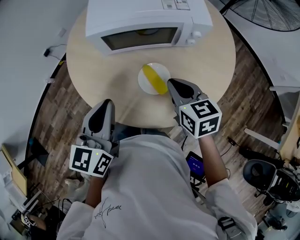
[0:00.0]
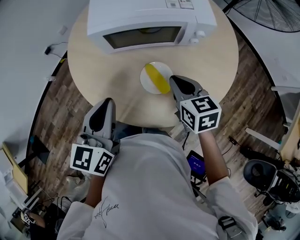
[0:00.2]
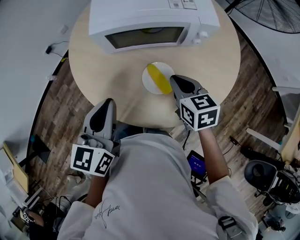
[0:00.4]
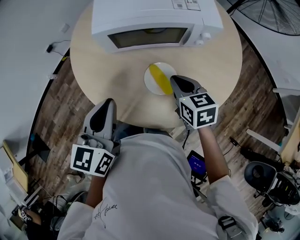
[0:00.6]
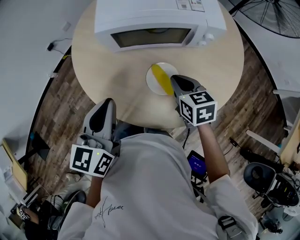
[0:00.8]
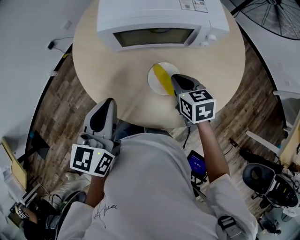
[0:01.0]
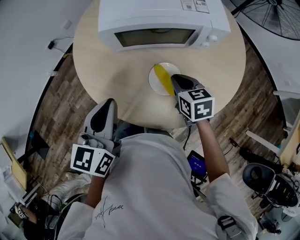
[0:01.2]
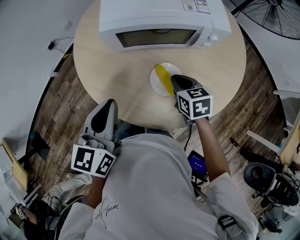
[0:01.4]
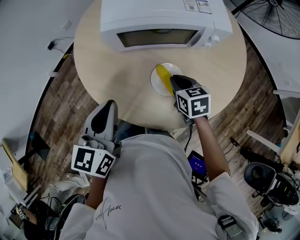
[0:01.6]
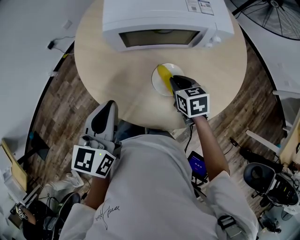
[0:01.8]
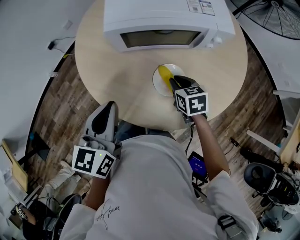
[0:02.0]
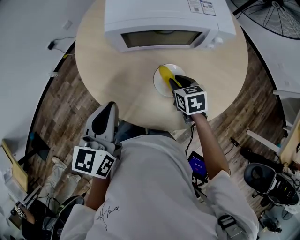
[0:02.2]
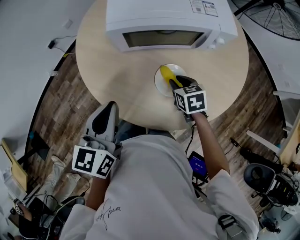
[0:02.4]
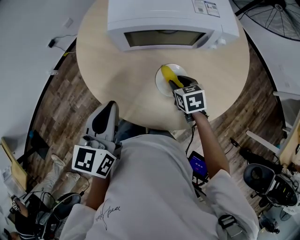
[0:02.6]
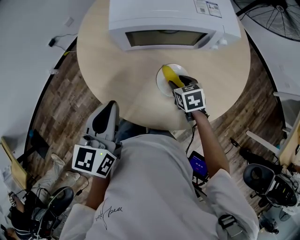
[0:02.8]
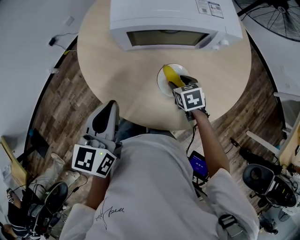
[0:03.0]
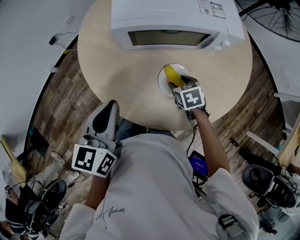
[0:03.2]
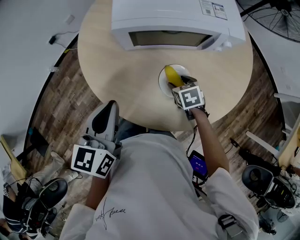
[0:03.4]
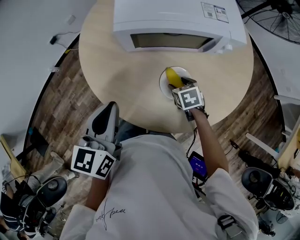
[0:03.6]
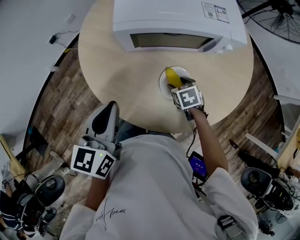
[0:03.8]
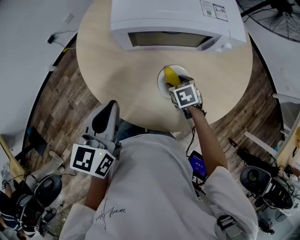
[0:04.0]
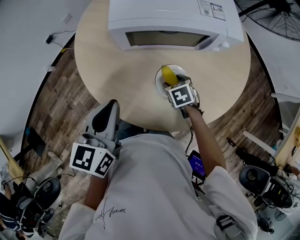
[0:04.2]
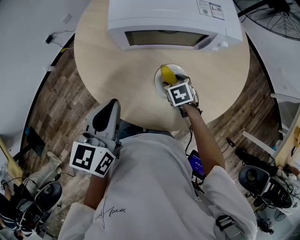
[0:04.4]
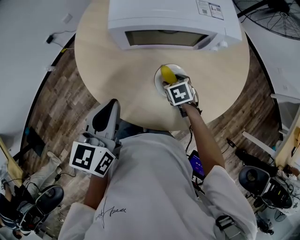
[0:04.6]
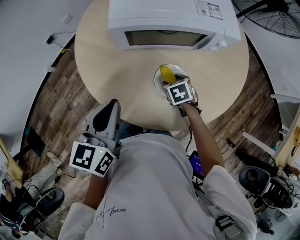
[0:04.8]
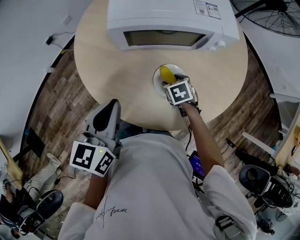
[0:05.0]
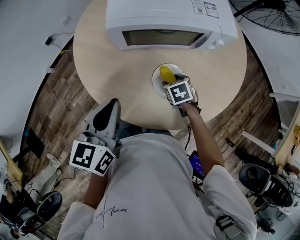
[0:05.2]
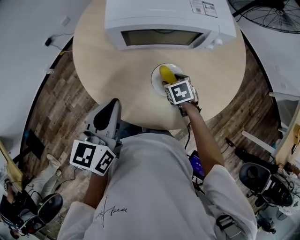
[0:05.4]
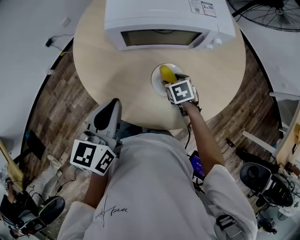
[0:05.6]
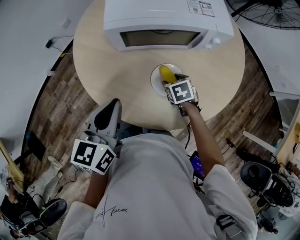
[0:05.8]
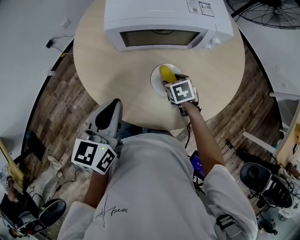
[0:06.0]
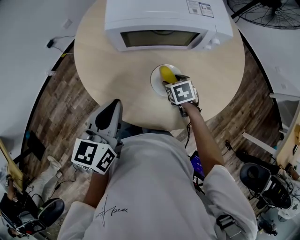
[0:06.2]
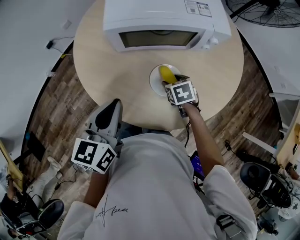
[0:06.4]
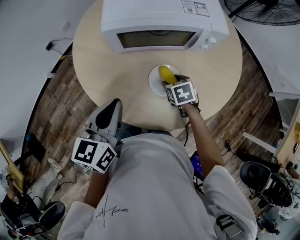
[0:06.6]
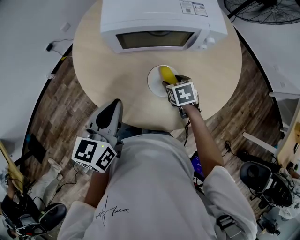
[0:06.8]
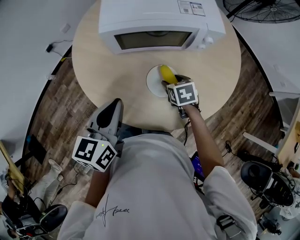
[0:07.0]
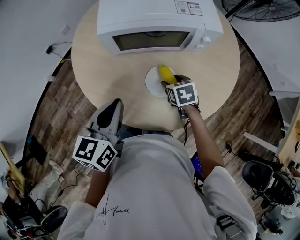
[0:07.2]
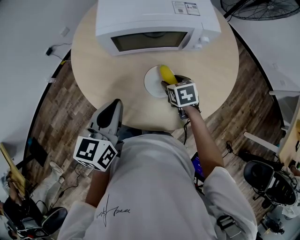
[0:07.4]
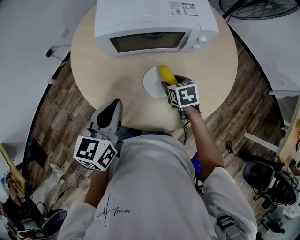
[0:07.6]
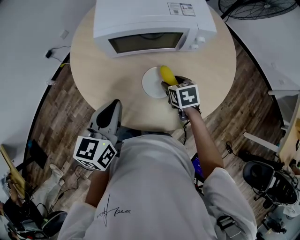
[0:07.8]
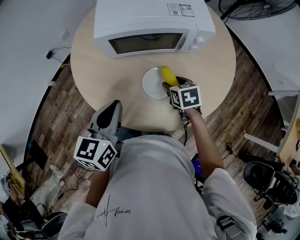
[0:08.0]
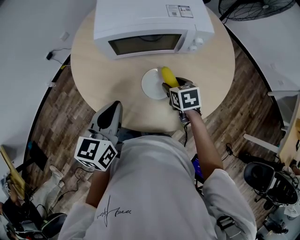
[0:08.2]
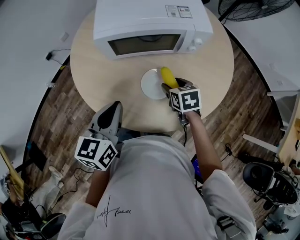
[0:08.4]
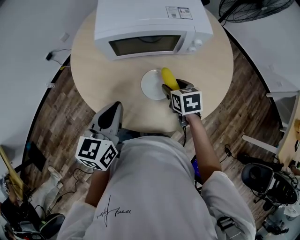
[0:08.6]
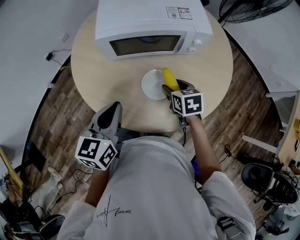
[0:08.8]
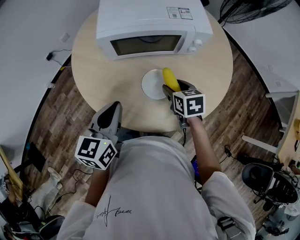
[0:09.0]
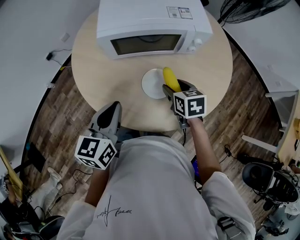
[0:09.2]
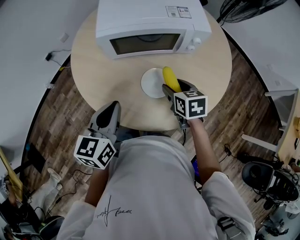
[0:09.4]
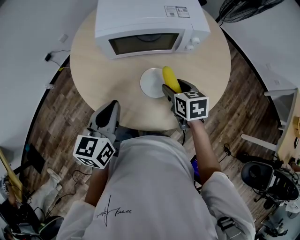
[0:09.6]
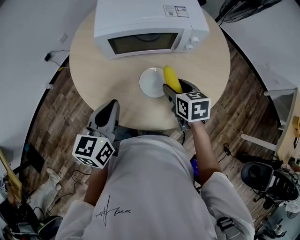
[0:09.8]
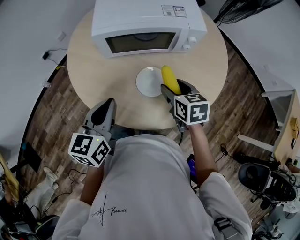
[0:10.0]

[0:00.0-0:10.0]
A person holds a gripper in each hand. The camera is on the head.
0:00.0 to 0:01.4: The right gripper shifts approximately 10 cm downward.
0:01.4 to 0:02.8: The right gripper is displaced downward by approximately 5 cm, and opens.
0:02.8 to 0:07.2: The grippers move only a little.
0:07.2 to 0:08.6: The right gripper shifts approximately 5 cm upward.
0:08.6 to 0:10.0: The right gripper moves upward, approximately 5 cm.

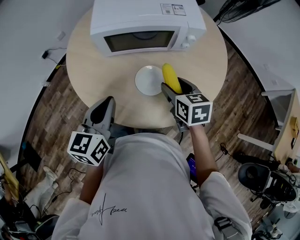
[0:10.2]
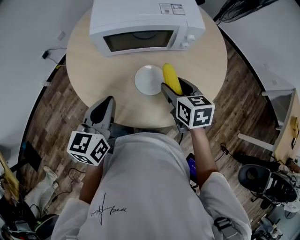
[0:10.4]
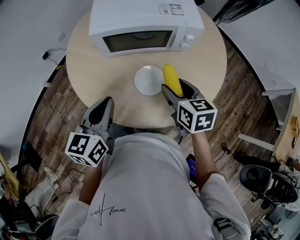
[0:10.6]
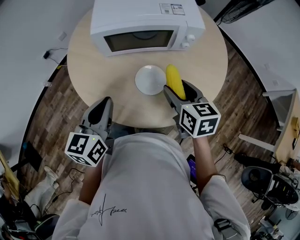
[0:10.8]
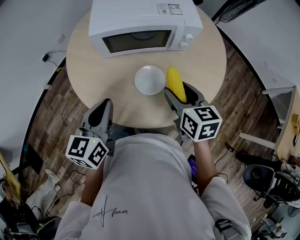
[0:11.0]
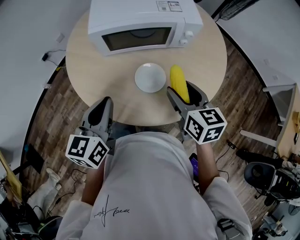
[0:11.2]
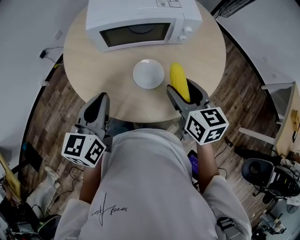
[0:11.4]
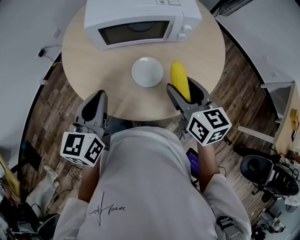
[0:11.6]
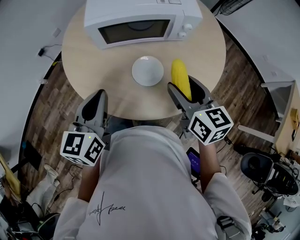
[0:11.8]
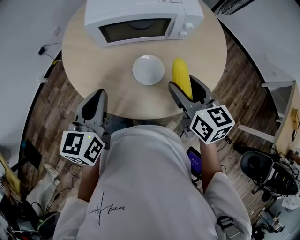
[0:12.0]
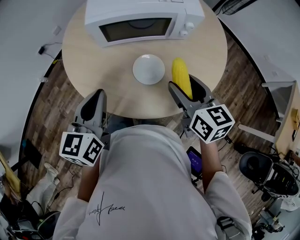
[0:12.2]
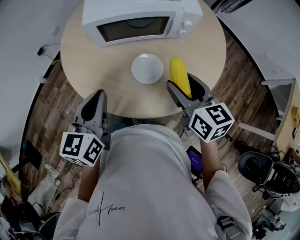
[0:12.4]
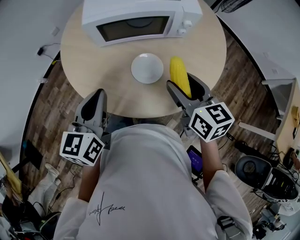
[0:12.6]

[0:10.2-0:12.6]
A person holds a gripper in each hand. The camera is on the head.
0:10.2 to 0:11.4: The right gripper goes roughly 5 cm upward.
0:11.4 to 0:12.6: Neither gripper changes place.

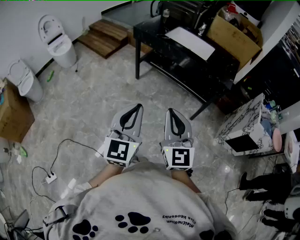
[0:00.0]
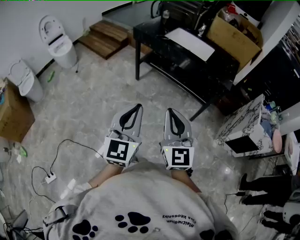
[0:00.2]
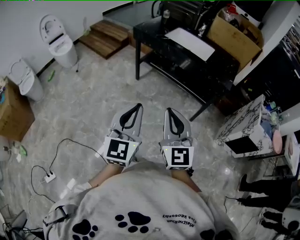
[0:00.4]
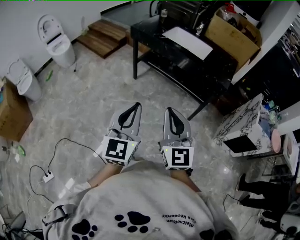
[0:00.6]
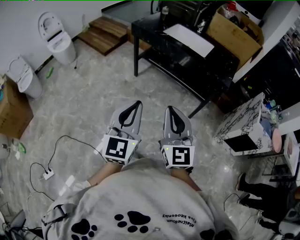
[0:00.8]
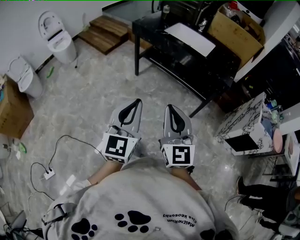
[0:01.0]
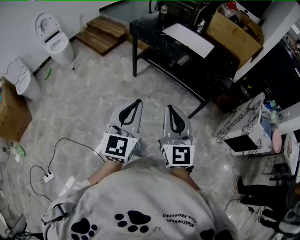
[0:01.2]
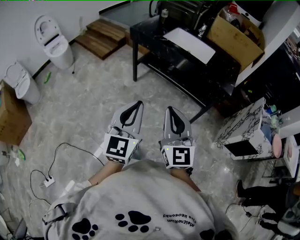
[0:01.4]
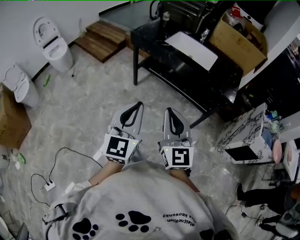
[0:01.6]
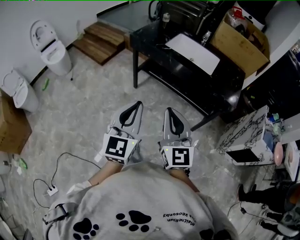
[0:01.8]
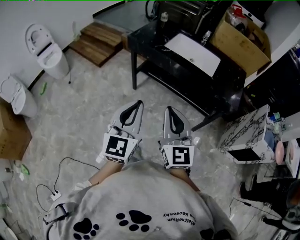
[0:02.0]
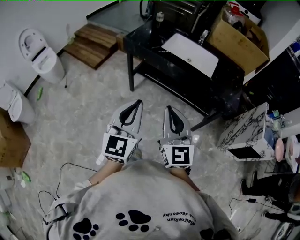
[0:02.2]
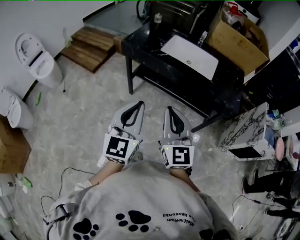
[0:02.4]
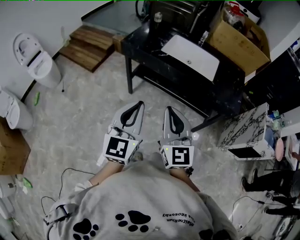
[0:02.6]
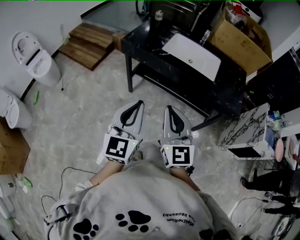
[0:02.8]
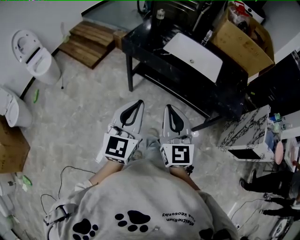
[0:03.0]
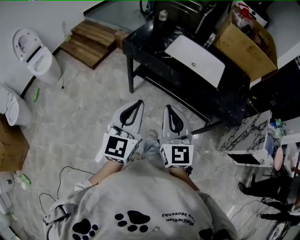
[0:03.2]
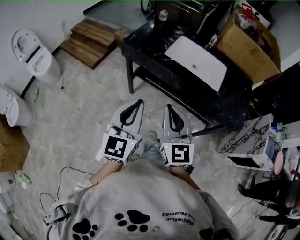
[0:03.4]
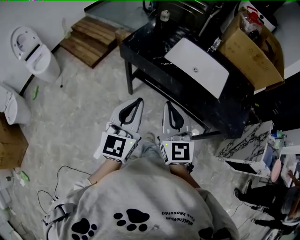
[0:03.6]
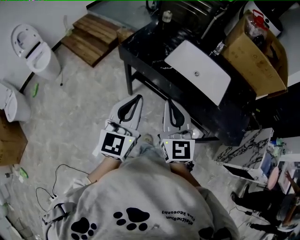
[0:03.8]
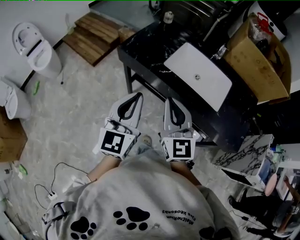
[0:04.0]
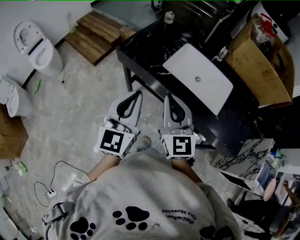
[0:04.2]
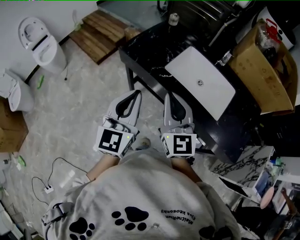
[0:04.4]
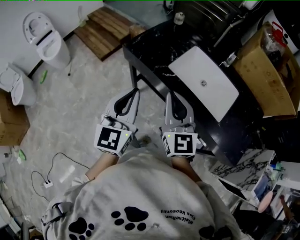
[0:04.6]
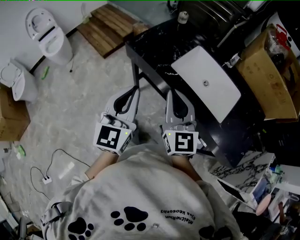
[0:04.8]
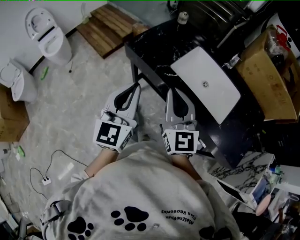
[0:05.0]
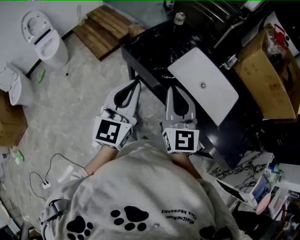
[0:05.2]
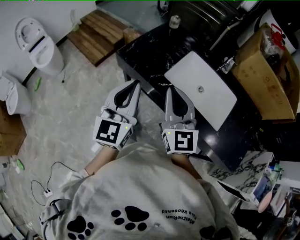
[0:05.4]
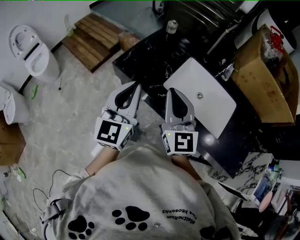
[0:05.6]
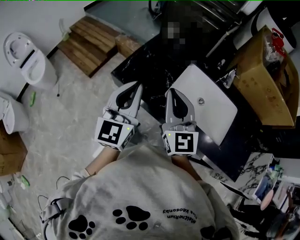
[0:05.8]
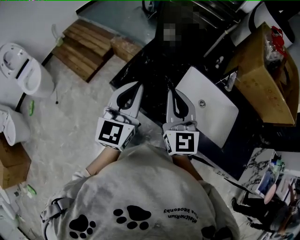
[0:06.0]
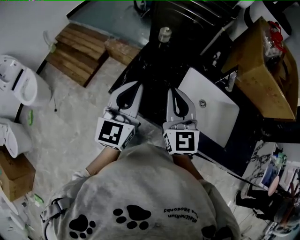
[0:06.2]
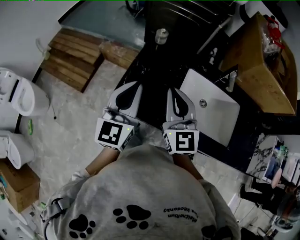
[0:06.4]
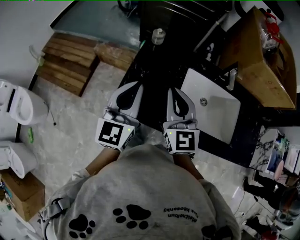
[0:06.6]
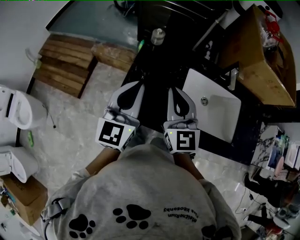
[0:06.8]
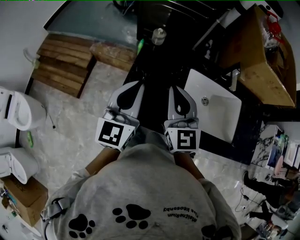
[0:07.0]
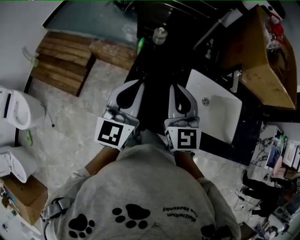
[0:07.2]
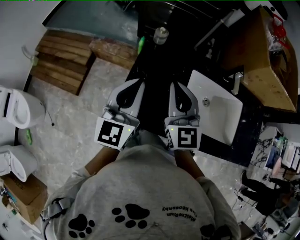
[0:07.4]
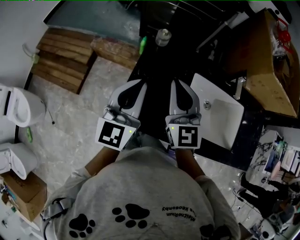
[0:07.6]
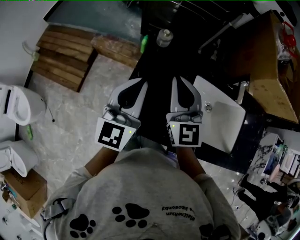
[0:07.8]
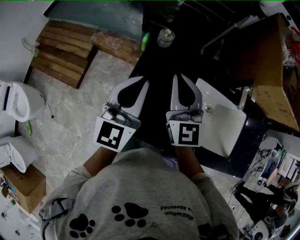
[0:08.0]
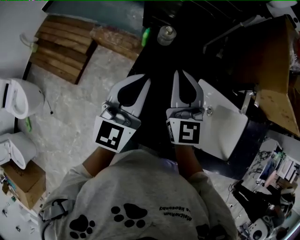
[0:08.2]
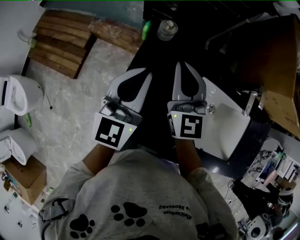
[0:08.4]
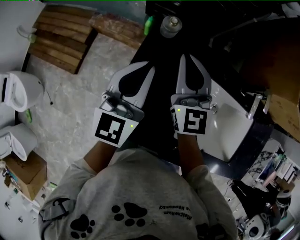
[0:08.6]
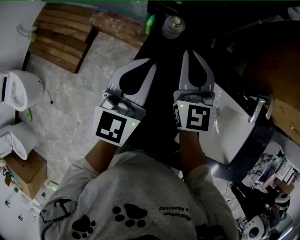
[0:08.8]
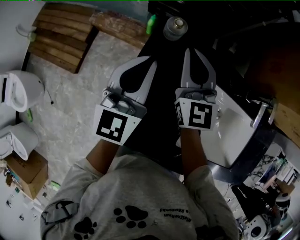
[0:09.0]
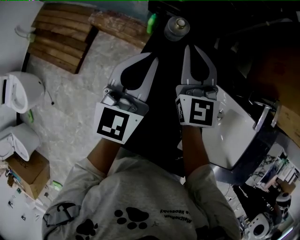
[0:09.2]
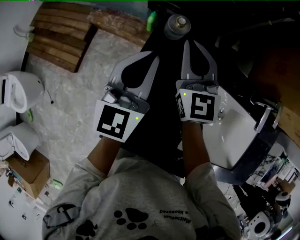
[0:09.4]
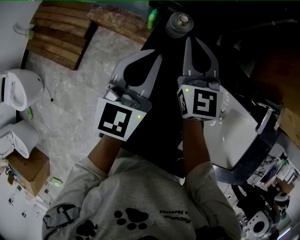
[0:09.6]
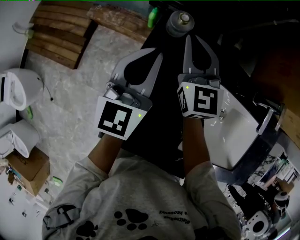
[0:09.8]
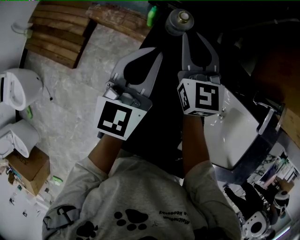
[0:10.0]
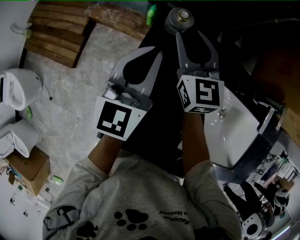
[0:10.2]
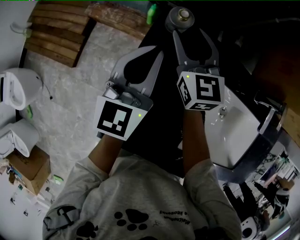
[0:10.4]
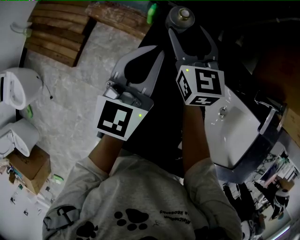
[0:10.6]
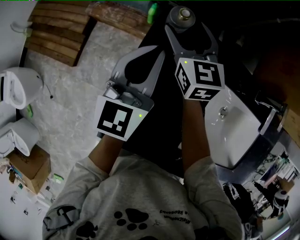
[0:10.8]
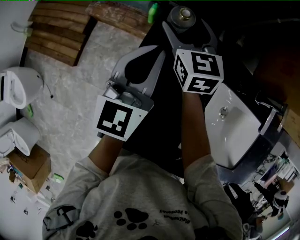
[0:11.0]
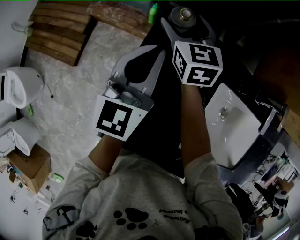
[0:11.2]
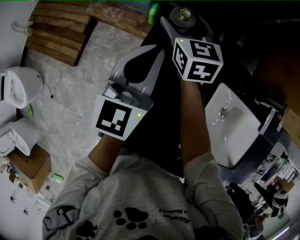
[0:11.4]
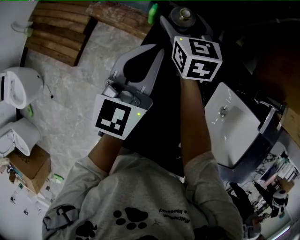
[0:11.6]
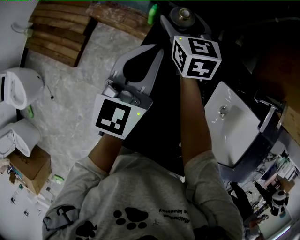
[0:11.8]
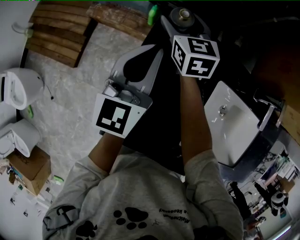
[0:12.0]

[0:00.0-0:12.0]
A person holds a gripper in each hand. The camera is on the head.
0:00.0 to 0:01.6: The grippers both shift forward by about 10 cm.
0:01.6 to 0:03.0: Both grippers travel together forward, some 20 cm.
0:03.0 to 0:04.4: Both grippers travel together forward, some 25 cm.
0:04.4 to 0:06.0: Both grippers travel together forward, some 25 cm.
0:06.0 to 0:07.6: The left gripper heads forward, covering about 15 cm. Meanwhile the right gripper shifts roughly 15 cm forward and to the left.
0:07.6 to 0:09.0: Both grippers move forward and downward, about 20 cm.
0:09.0 to 0:10.4: The right gripper goes some 10 cm downward and forward, and opens, while the left gripper moves approximately 5 cm.
0:10.4 to 0:12.0: The right gripper moves forward, some 5 cm, and opens up.
